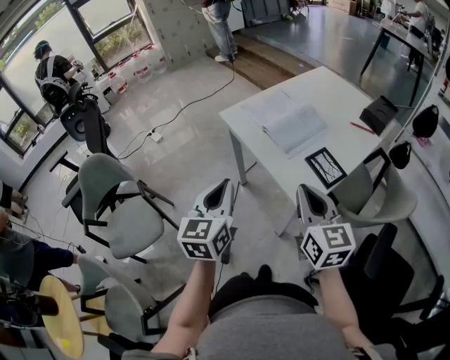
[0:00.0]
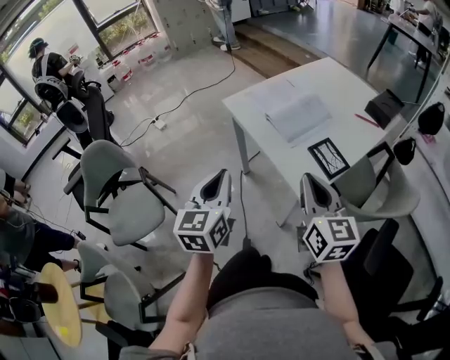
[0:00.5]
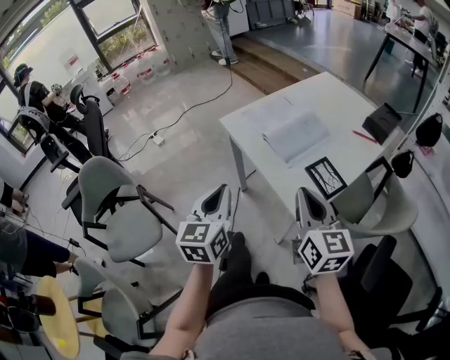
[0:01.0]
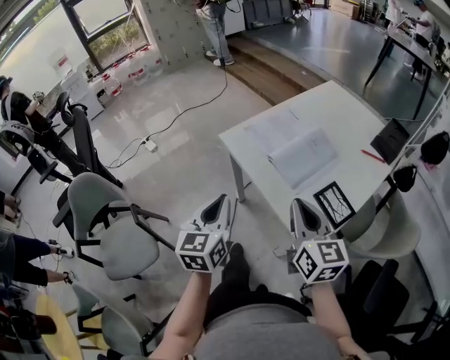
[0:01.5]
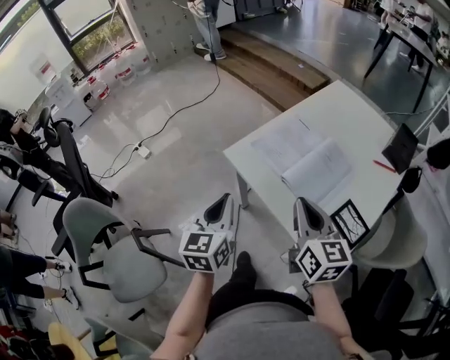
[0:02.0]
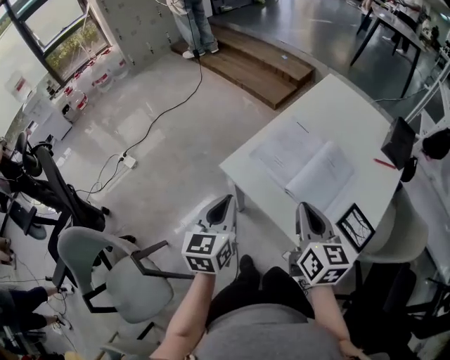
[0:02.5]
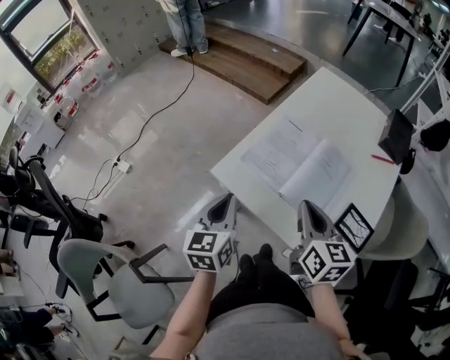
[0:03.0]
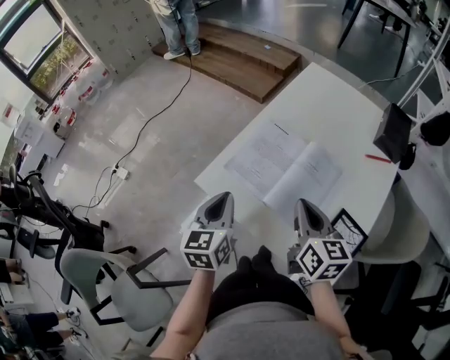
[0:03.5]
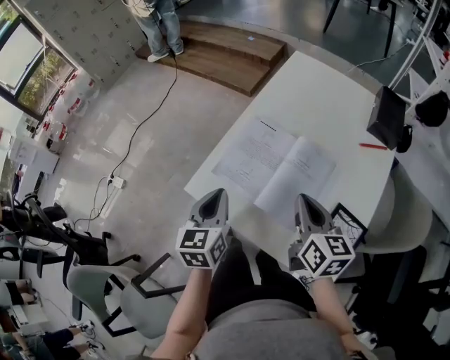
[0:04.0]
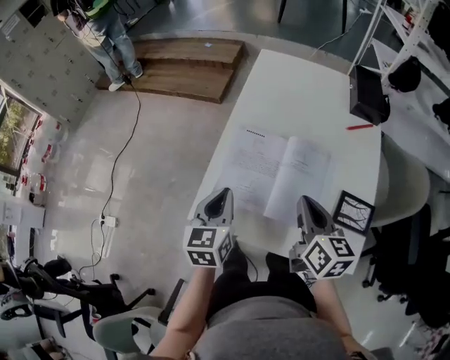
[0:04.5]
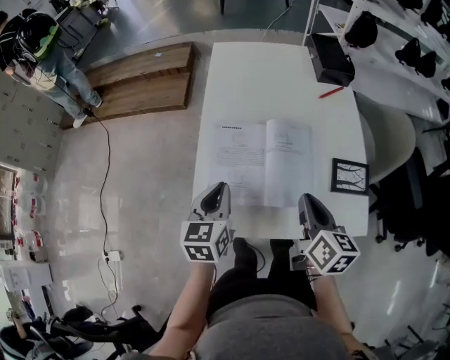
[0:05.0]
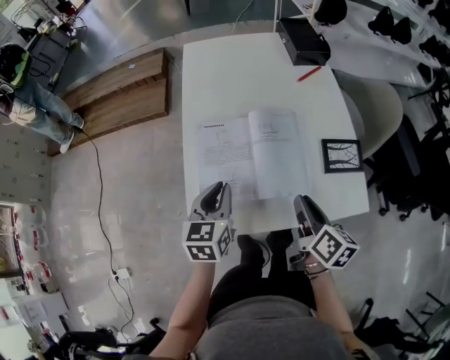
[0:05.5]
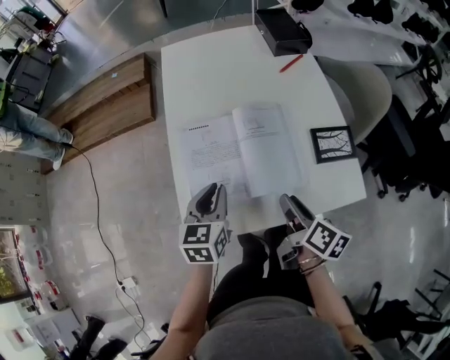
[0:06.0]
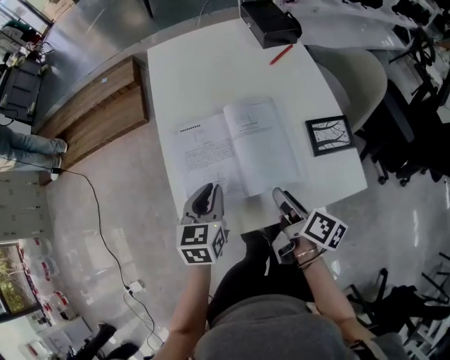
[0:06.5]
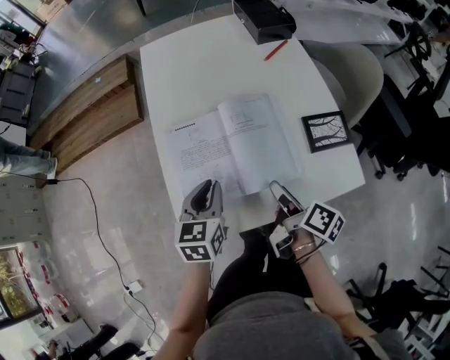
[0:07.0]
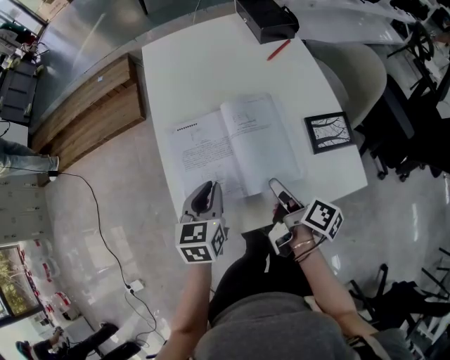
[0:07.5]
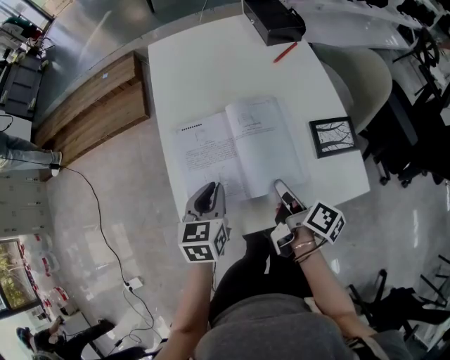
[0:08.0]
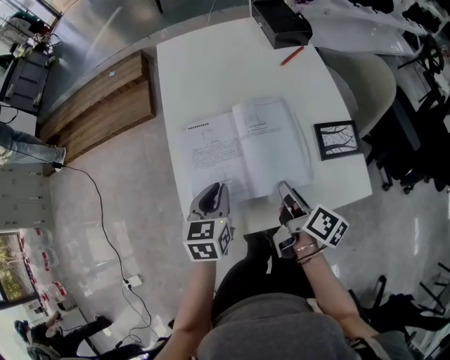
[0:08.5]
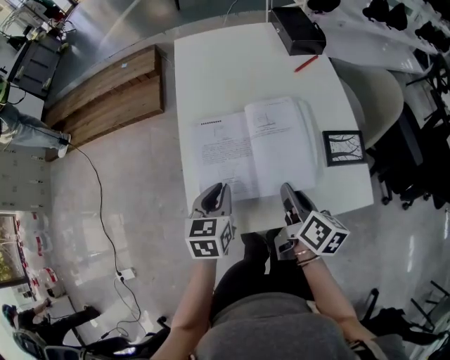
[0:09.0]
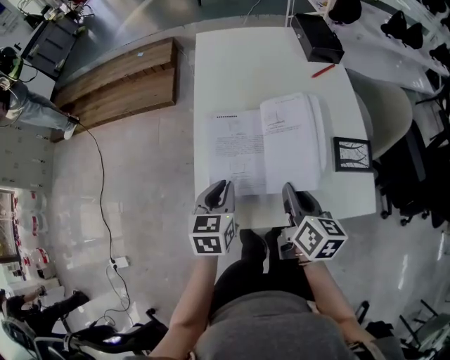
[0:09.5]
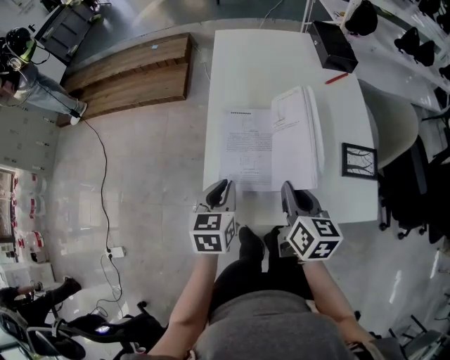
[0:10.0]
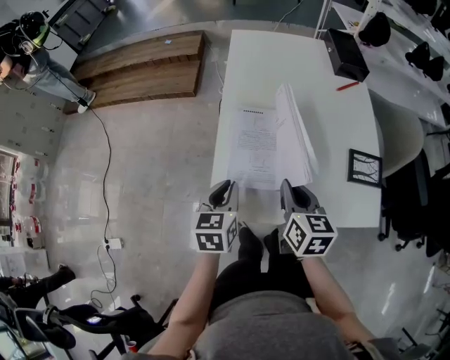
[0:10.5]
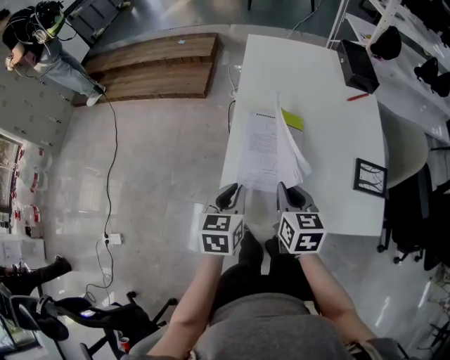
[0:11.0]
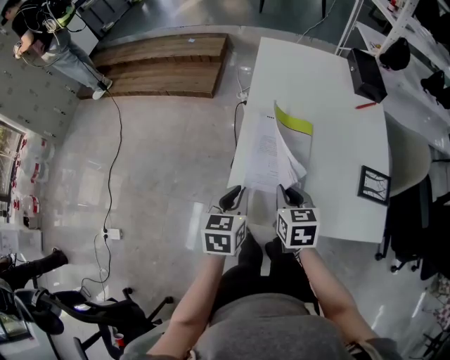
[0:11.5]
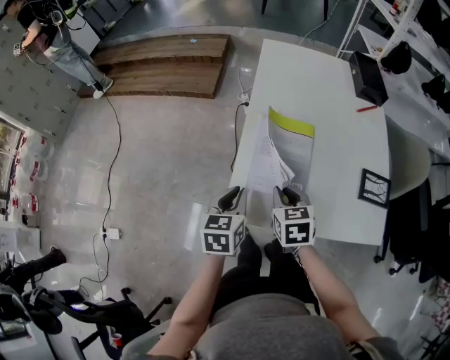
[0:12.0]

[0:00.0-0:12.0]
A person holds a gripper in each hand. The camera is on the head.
0:00.0 to 0:02.0: The grippers both shift forward by about 20 cm.
0:02.0 to 0:04.0: The right gripper heads forward, to the right and downward, covering roughly 15 cm, and changes its angle by about 20 degrees. Meanwhile the left gripper travels forward by approximately 15 cm.
0:04.0 to 0:06.0: The right gripper changes place by some 15 cm, turns by roughly 60 degrees, and opens its fingers, while the left gripper shifts by approximately 10 cm, and swivels about 50 degrees.
0:08.0 to 0:10.0: The right gripper moves to the left and upward, approximately 10 cm, rolls counterclockwise, seen from behind, by about 50 degrees, and closes its fingers. Meanwhile the left gripper heads to the left, covering roughly 5 cm.
0:10.0 to 0:12.0: The left gripper changes place by roughly 5 cm, while the right gripper heads to the left and downward, covering about 10 cm, and turns by some 30 degrees.

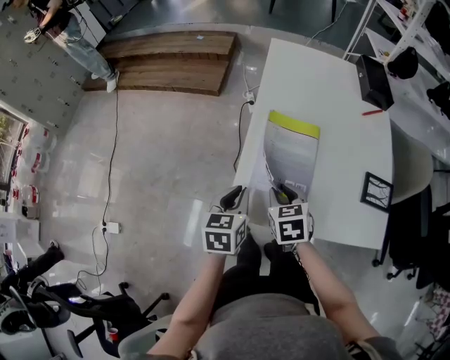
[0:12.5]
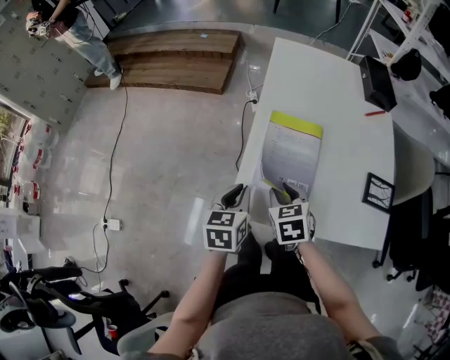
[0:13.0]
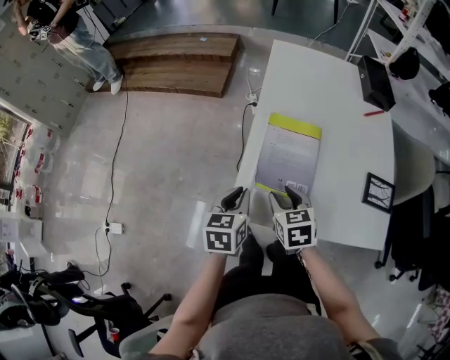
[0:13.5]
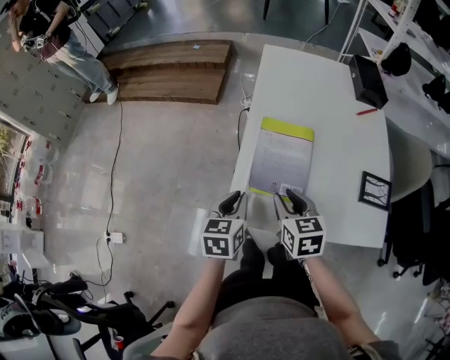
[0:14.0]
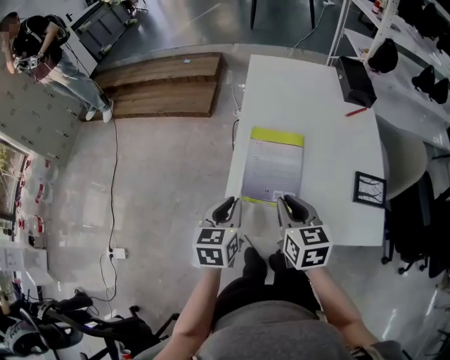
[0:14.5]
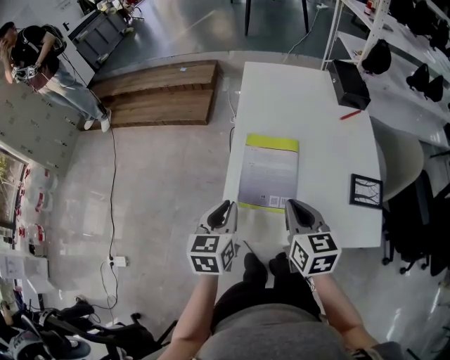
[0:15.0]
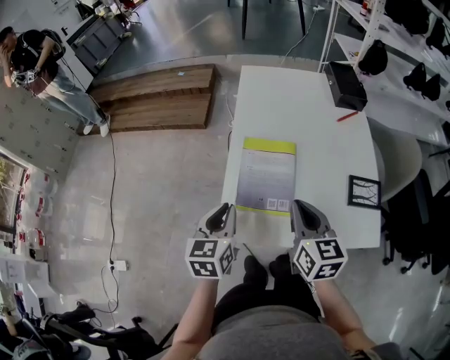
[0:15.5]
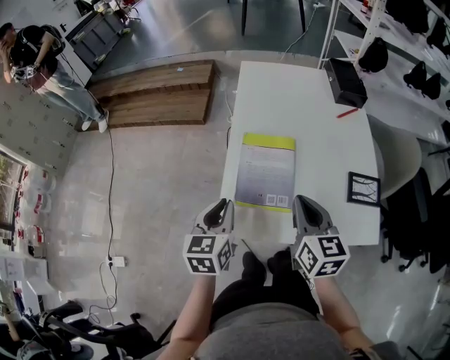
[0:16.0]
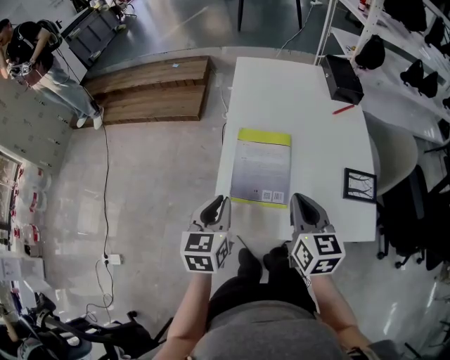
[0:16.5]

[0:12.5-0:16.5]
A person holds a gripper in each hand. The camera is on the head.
0:12.5 to 0:14.5: The right gripper moves upward, approximately 10 cm, and swivels some 20 degrees.
0:14.5 to 0:16.5: The right gripper goes approximately 5 cm to the right.

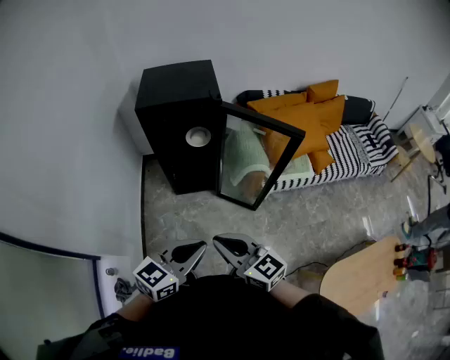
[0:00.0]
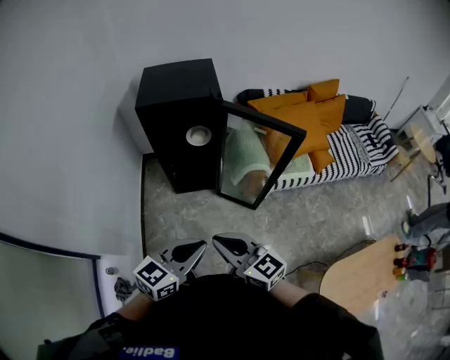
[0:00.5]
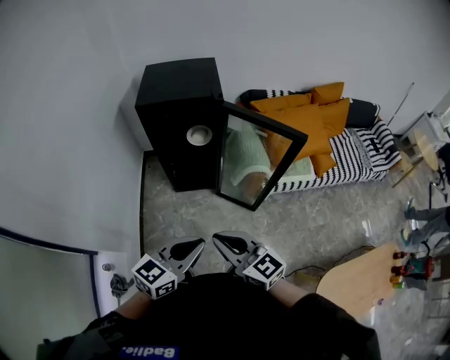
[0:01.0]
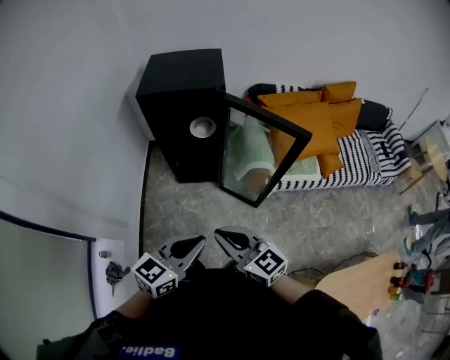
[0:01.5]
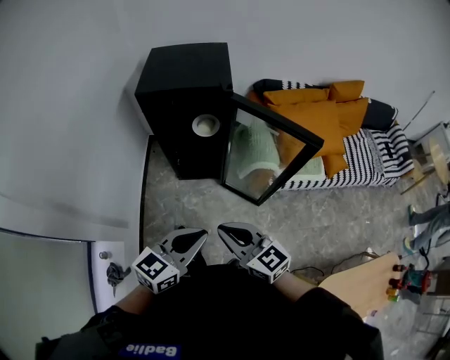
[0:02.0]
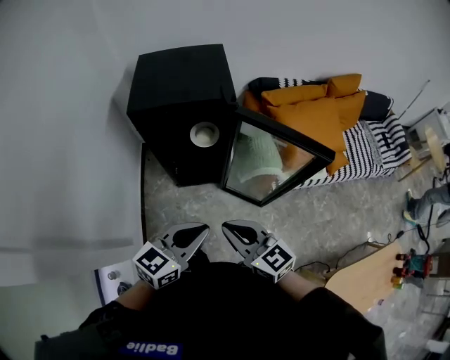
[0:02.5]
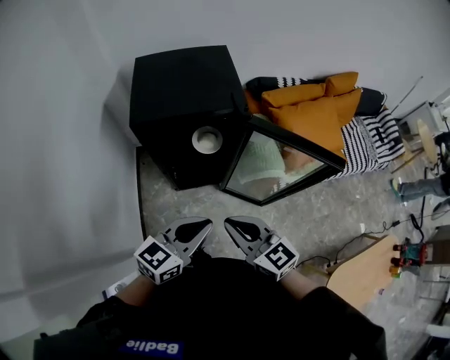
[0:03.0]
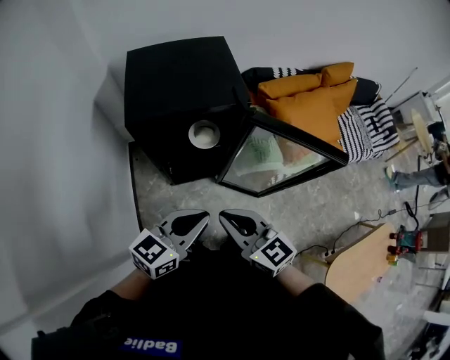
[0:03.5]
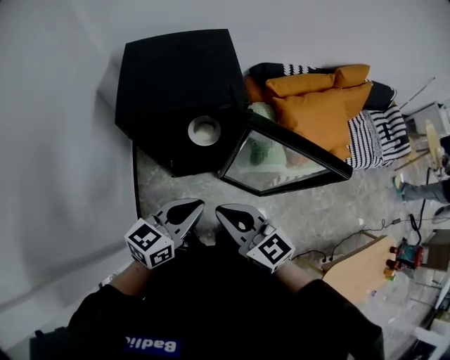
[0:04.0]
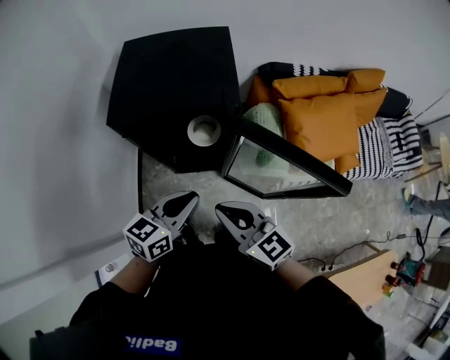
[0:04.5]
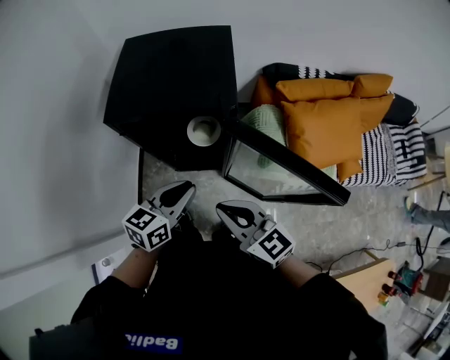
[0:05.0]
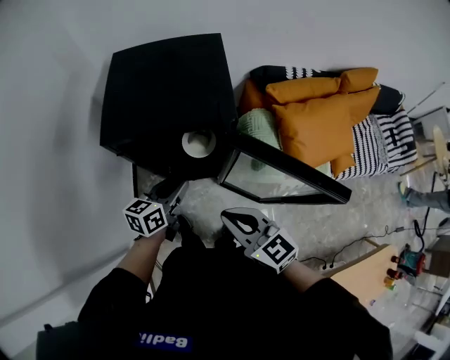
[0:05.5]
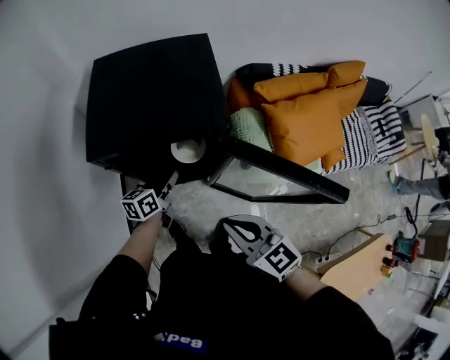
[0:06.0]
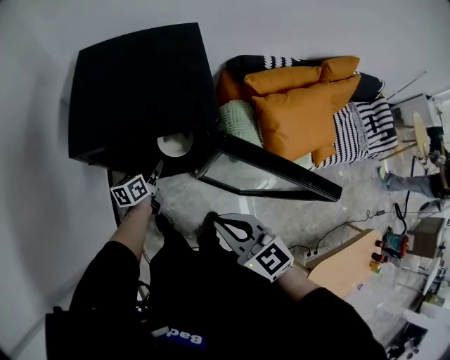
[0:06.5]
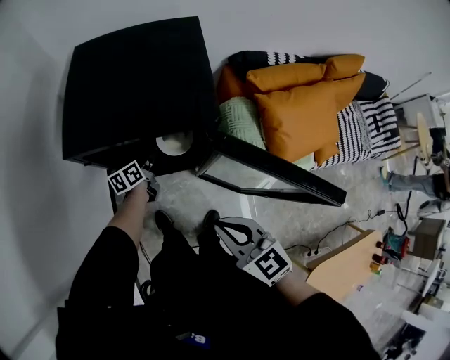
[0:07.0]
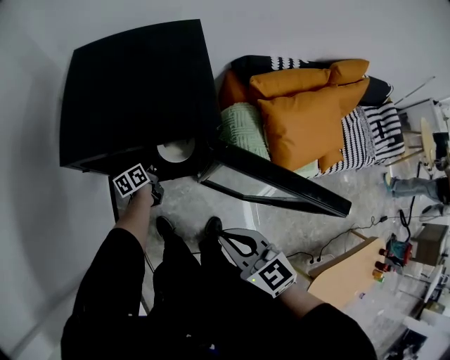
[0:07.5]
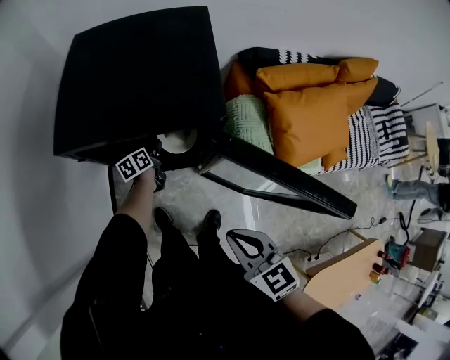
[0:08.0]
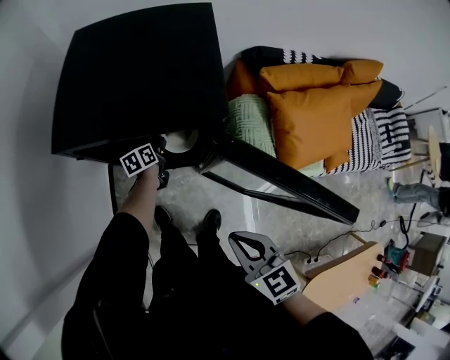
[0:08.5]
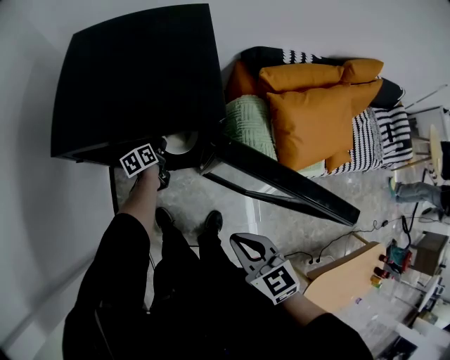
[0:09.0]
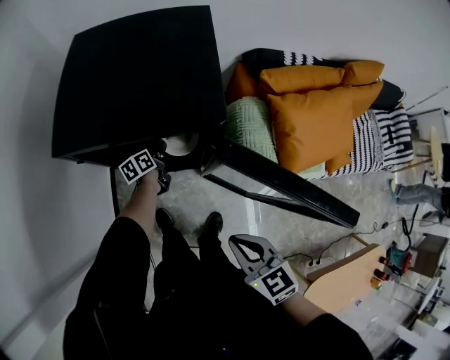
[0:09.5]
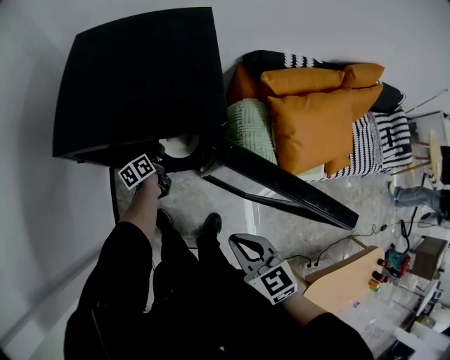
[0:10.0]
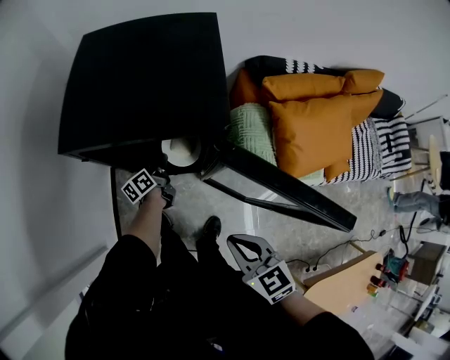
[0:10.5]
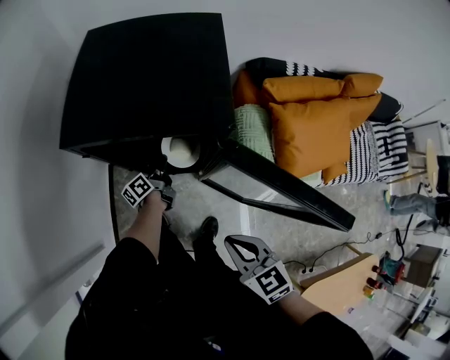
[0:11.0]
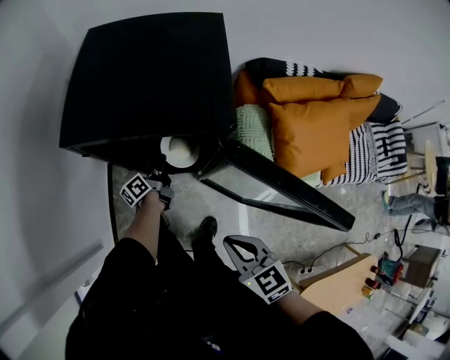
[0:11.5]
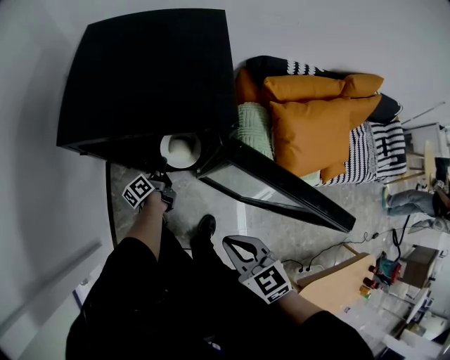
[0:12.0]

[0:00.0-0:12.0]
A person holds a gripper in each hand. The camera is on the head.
0:00.0 to 0:02.0: The two grippers go approximately 5 cm forward.
0:02.0 to 0:04.0: The two grippers go approximately 25 cm forward and to the left.
0:04.0 to 0:06.0: The left gripper is displaced forward and downward by about 25 cm, rotates roughly 30 degrees, and opens its fingers. Meanwhile the right gripper moves to the right and forward, roughly 10 cm.
0:06.0 to 0:08.0: The left gripper shifts roughly 20 cm downward and forward, and changes its angle by approximately 30 degrees. The right gripper is displaced downward by about 5 cm.
0:08.0 to 0:10.0: There are only small adjustments of the grippers.
0:10.0 to 0:12.0: The left gripper heads backward, covering roughly 5 cm, and turns by approximately 20 degrees.
